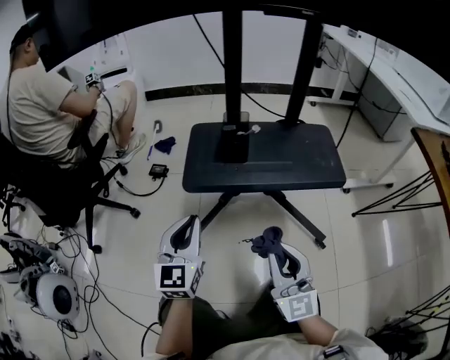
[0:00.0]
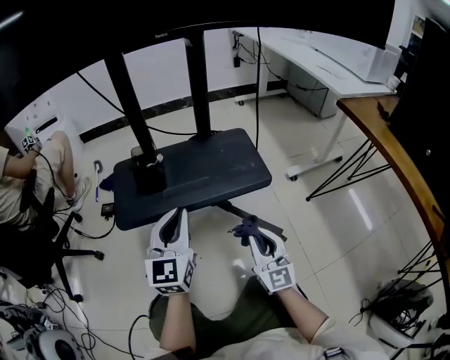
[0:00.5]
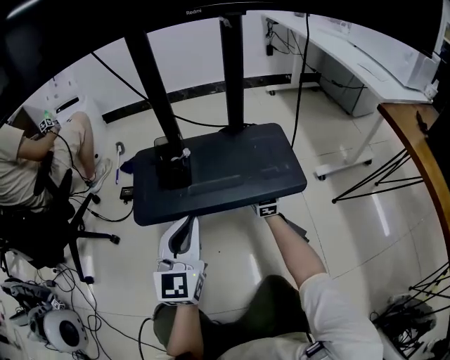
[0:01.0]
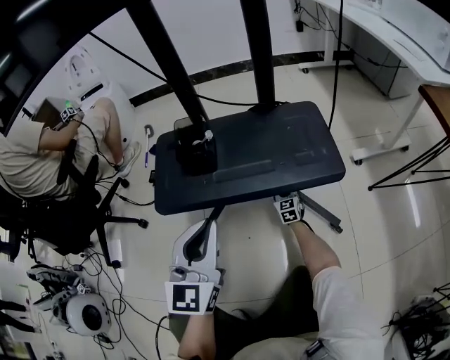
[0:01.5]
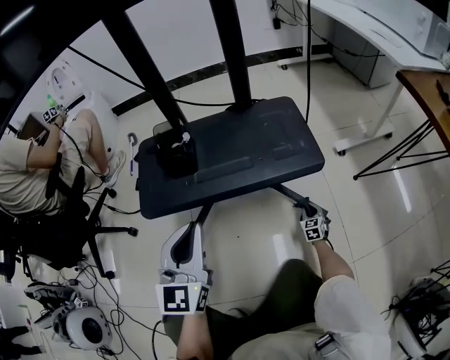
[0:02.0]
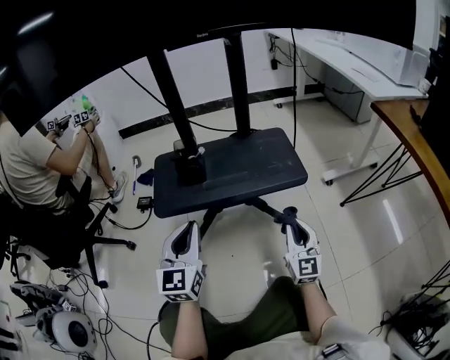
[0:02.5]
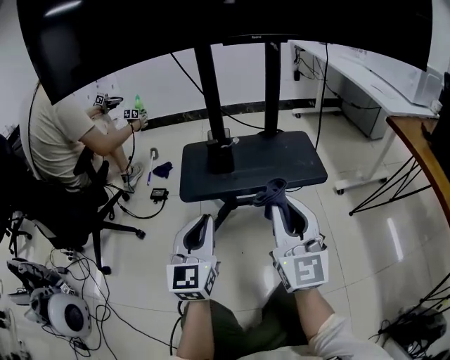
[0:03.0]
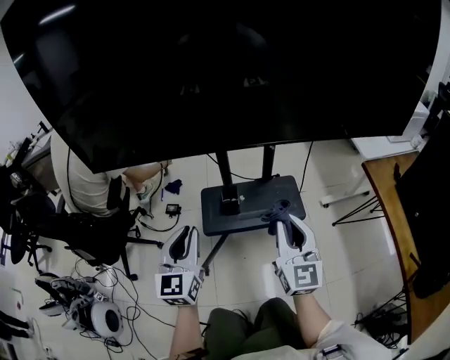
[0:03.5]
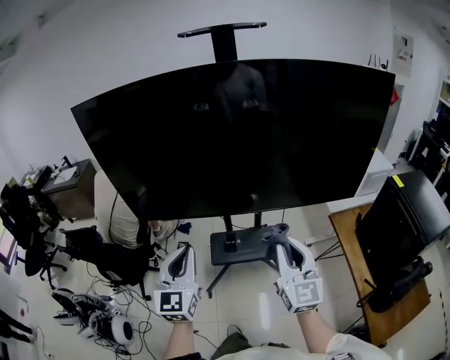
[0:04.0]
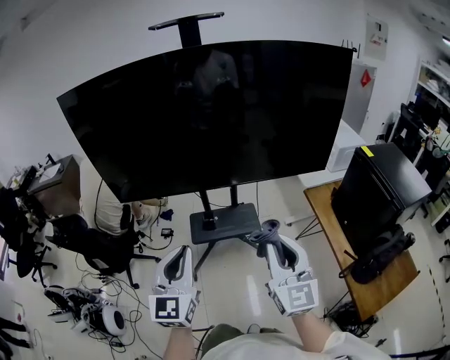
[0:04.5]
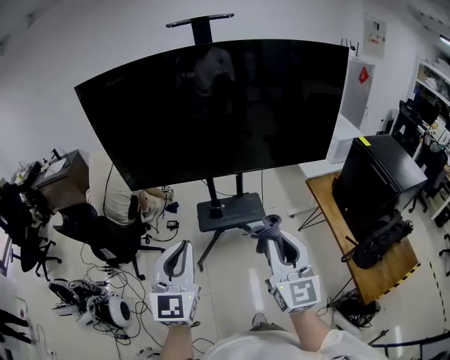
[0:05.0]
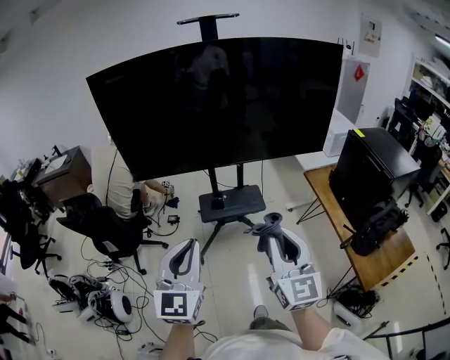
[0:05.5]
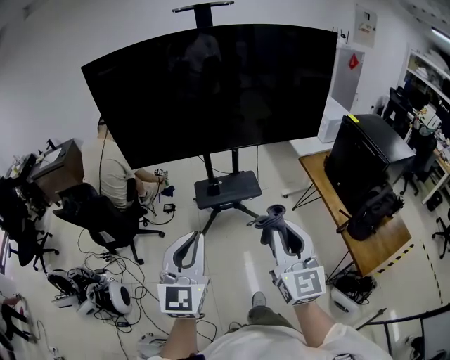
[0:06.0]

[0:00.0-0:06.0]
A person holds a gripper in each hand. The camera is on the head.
0:00.0 to 0:02.0: The right gripper travels downward, forward and to the right by some 60 cm, and rotates roughly 40 degrees. The left gripper travels to the right by about 10 cm.
0:02.0 to 0:04.0: The left gripper shifts approximately 90 cm upward and backward; the right gripper travels upward by roughly 1.5 m, and tilts its fingers some 40 degrees upward.
0:04.0 to 0:06.0: Both grippers move backward, some 30 cm.

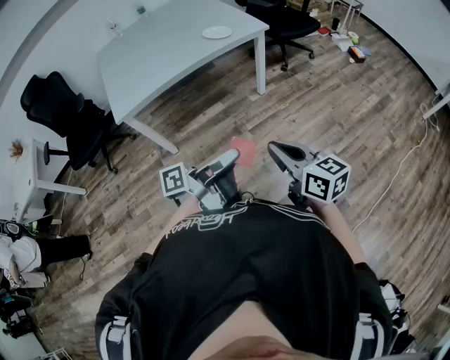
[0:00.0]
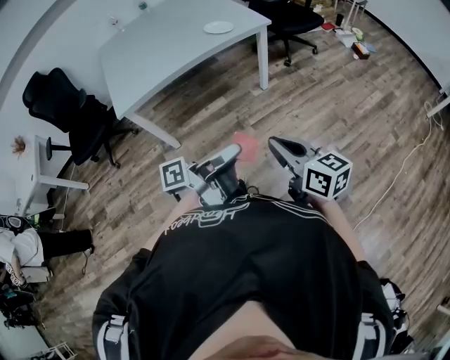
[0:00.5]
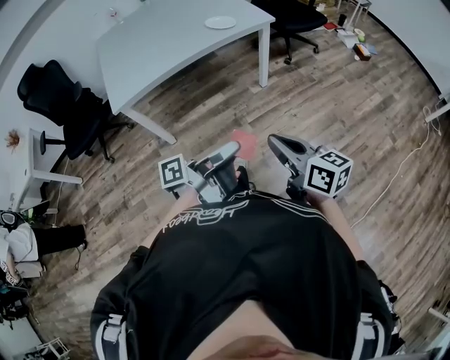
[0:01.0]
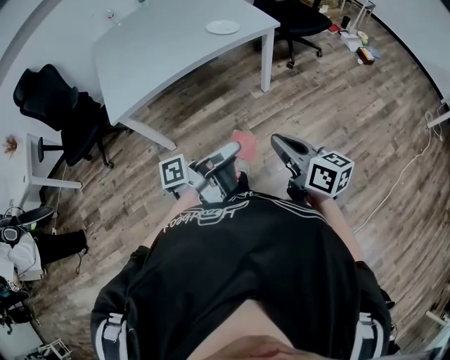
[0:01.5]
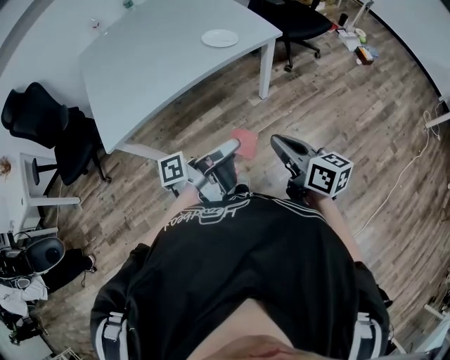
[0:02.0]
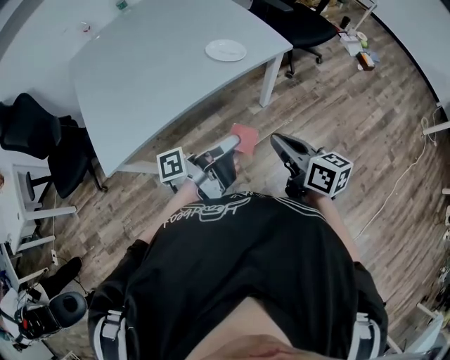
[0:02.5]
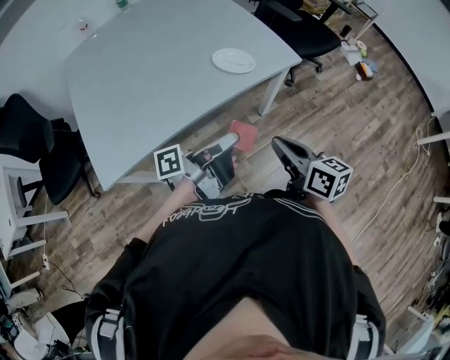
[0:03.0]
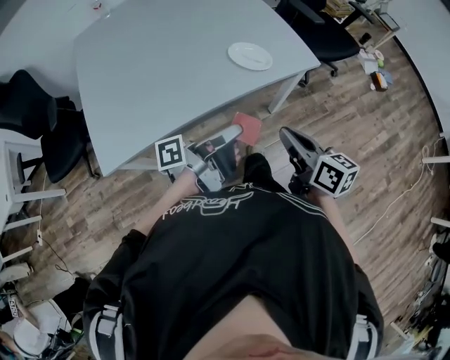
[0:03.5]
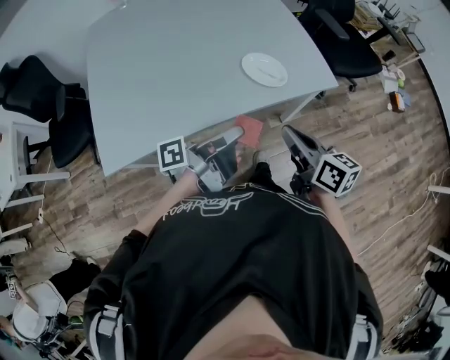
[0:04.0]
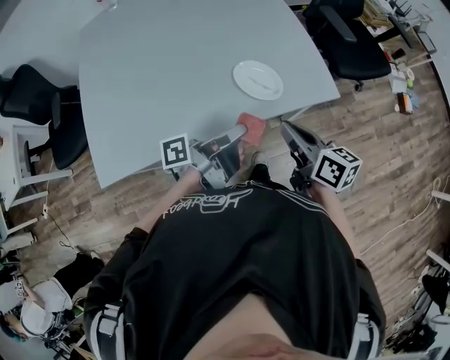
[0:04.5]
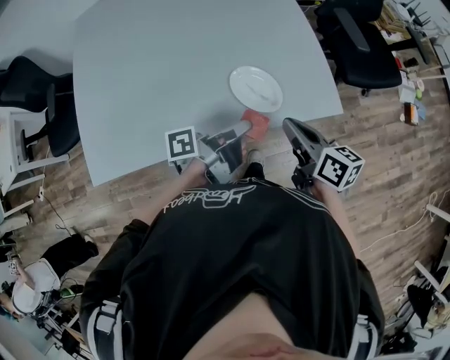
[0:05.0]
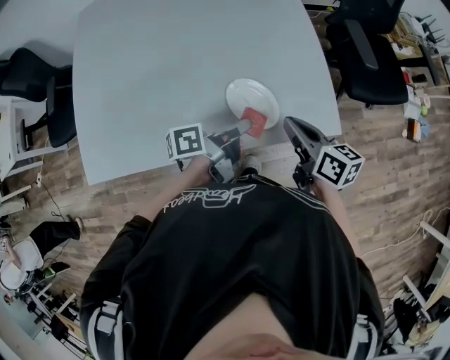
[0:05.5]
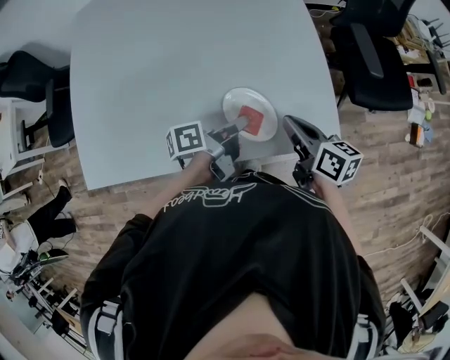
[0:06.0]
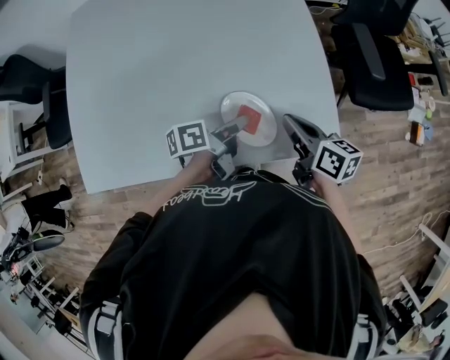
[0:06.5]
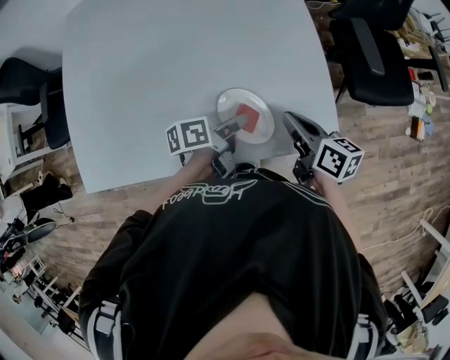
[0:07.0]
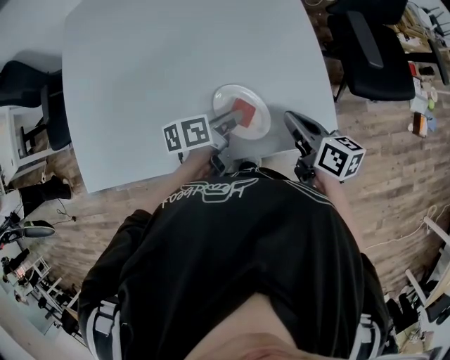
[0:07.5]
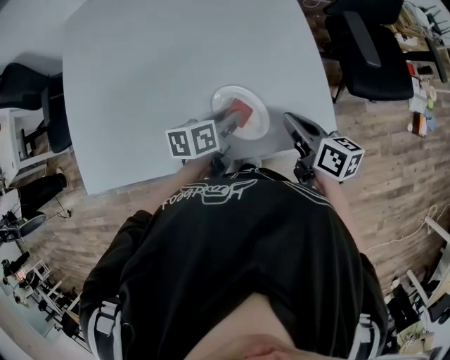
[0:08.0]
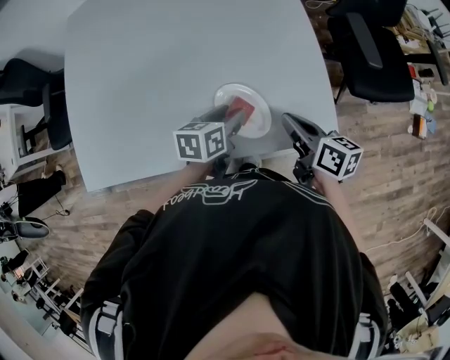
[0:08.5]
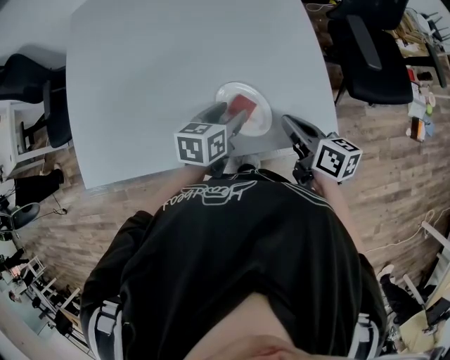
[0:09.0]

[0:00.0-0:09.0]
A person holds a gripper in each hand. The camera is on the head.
0:00.0 to 0:02.0: Both grippers move forward, about 25 cm.
0:02.0 to 0:04.5: Both grippers move forward, roughly 40 cm.
0:04.5 to 0:07.0: Both grippers move forward and downward, some 20 cm. The left gripper points its fingers approximately 30 degrees further downward.
0:07.0 to 0:09.0: The left gripper twists approximately 40 degrees clockwise, seen from behind, and opens.

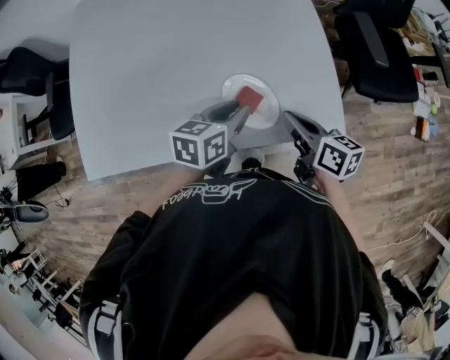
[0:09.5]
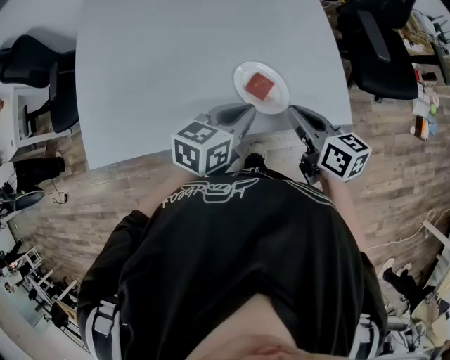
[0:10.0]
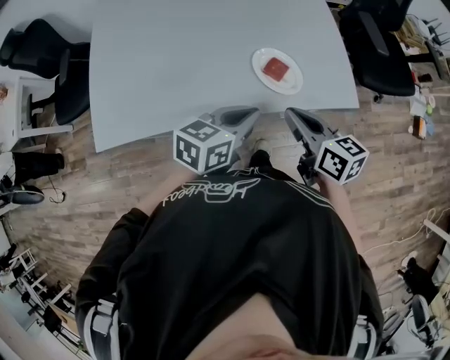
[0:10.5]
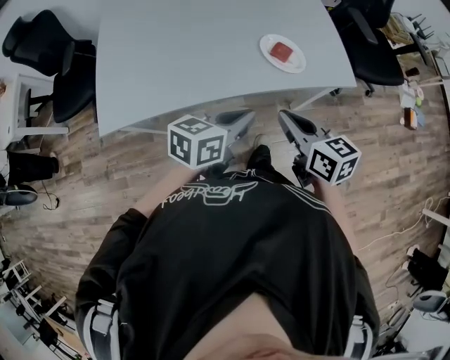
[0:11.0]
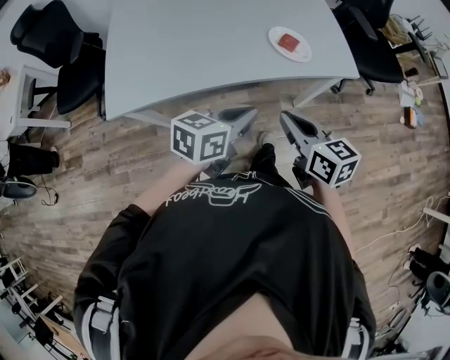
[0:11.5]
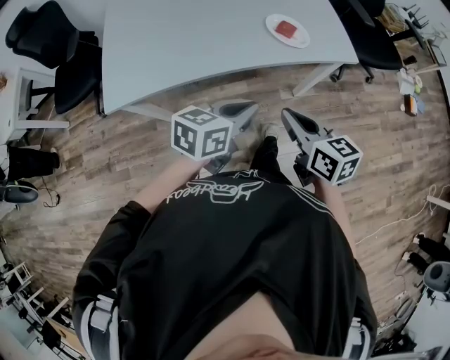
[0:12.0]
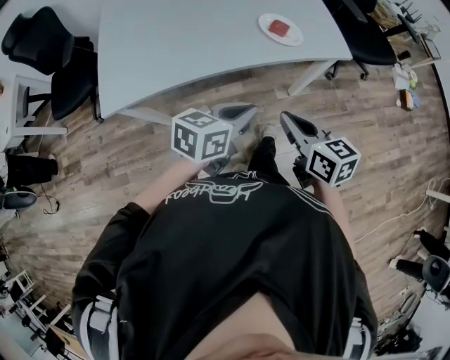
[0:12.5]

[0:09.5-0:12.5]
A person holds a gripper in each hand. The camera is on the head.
0:09.5 to 0:11.0: The left gripper goes about 25 cm backward, and closes. The right gripper moves backward and to the left, some 25 cm, and swivels about 20 degrees.
0:11.0 to 0:12.5: Both grippers travel together backward, about 10 cm.

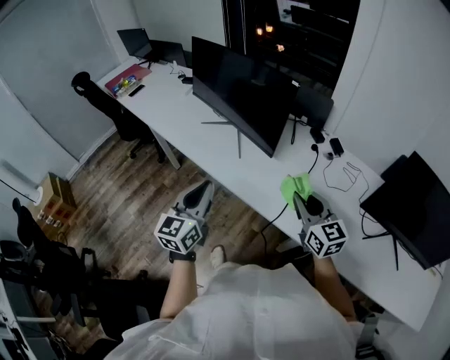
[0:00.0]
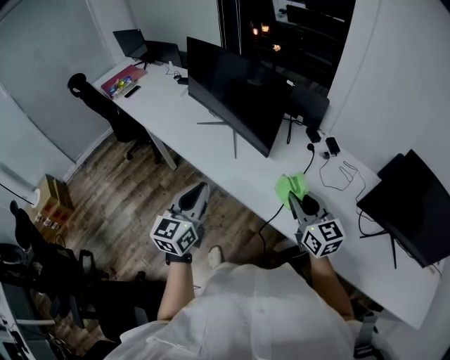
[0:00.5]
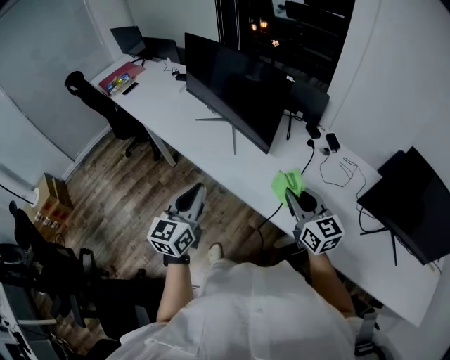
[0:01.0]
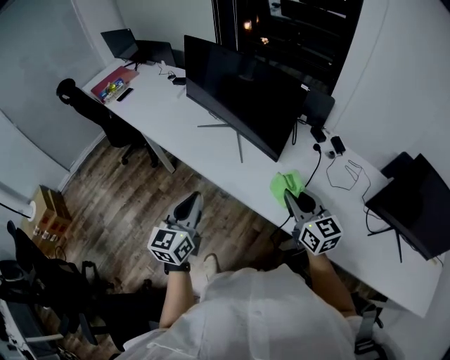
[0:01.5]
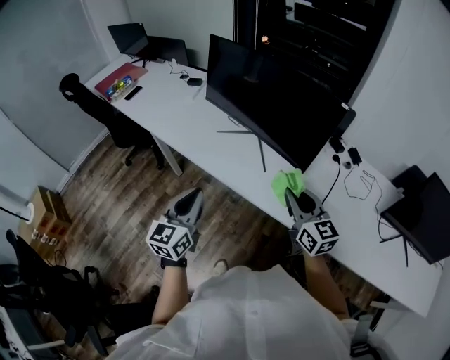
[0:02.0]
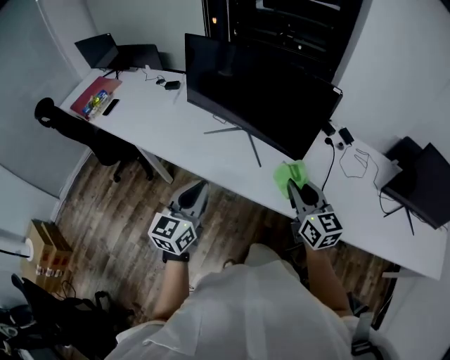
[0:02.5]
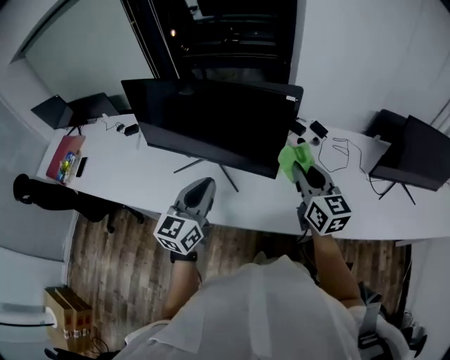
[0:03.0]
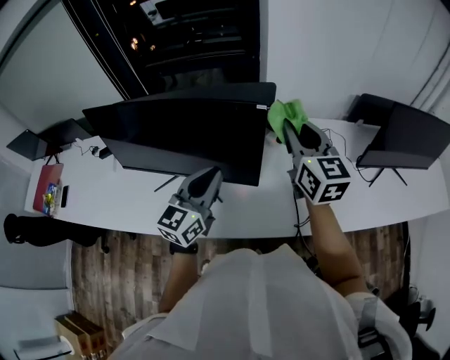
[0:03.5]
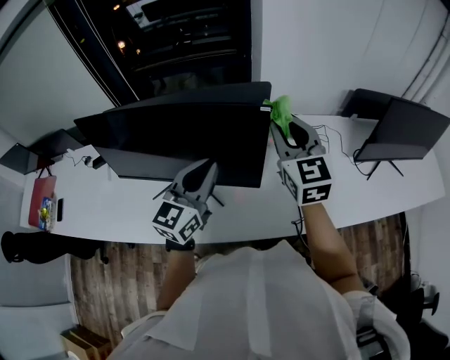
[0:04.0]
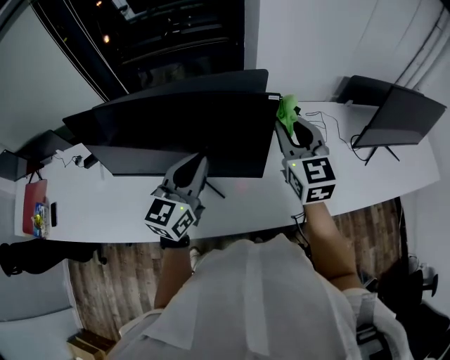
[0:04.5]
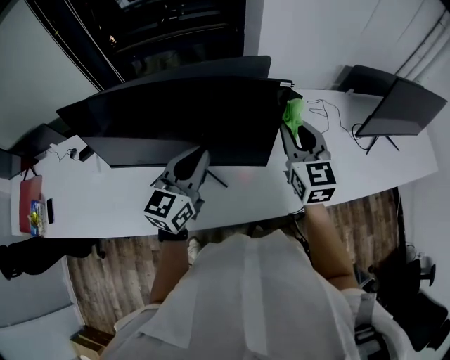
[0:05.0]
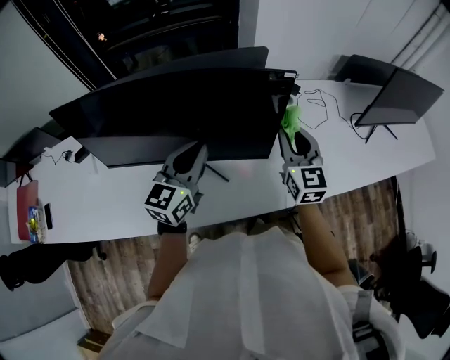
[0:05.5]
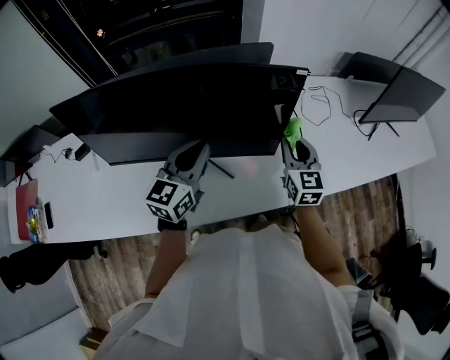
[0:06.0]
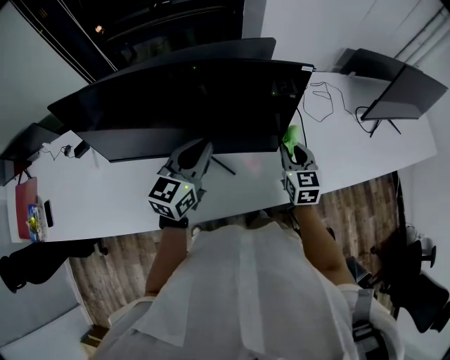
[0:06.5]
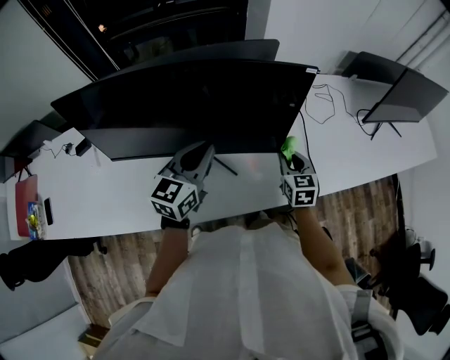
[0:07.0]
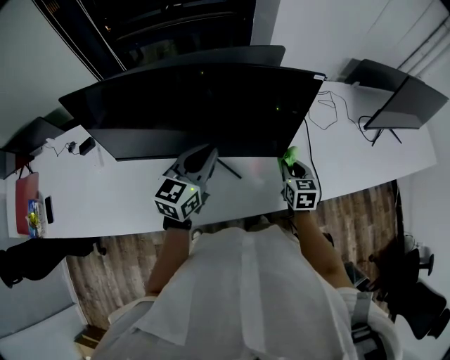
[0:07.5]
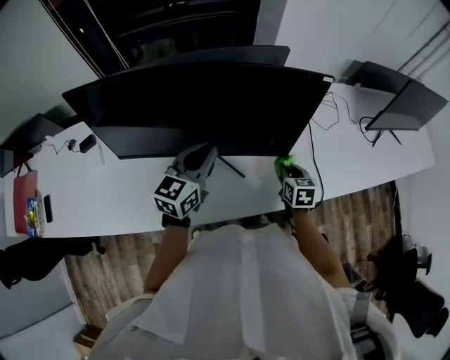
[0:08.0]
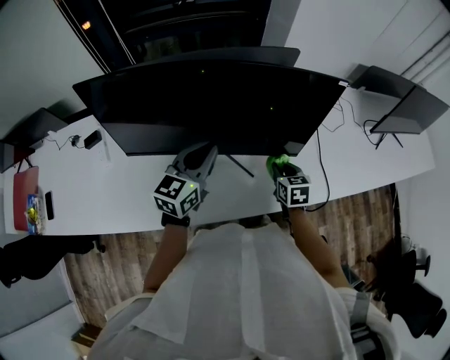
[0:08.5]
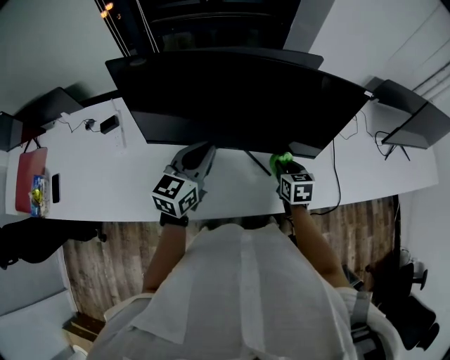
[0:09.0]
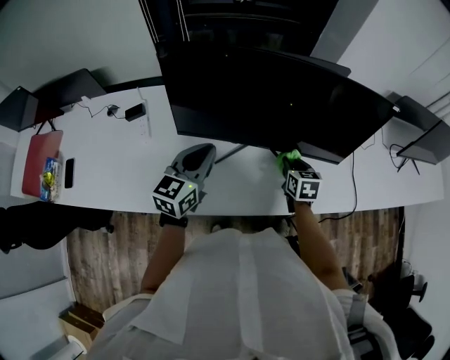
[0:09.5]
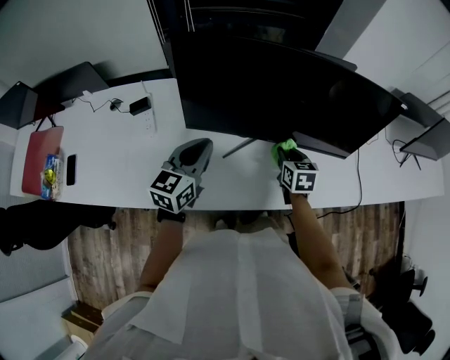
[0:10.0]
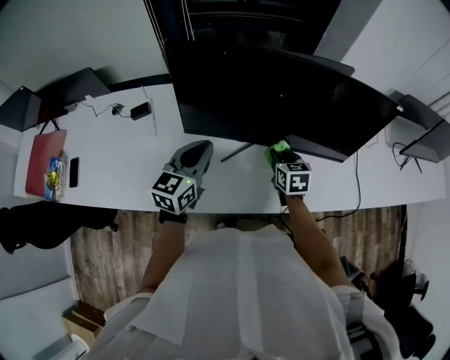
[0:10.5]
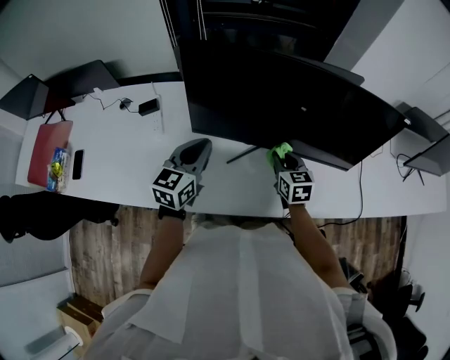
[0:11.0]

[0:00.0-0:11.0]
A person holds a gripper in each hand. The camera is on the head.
0:00.0 to 0:02.0: Both grippers travel together to the left and forward, roughly 20 cm.
0:02.0 to 0:03.5: The left gripper changes place by about 35 cm, and turns by approximately 40 degrees. The right gripper shifts by approximately 30 cm, and changes its angle by some 40 degrees.
0:03.5 to 0:05.5: The right gripper heads downward, covering about 15 cm, while the left gripper moves to the left, about 10 cm.
0:05.5 to 0:07.5: The left gripper moves approximately 5 cm. Meanwhile the right gripper shifts about 20 cm downward, and rotates some 30 degrees.
0:07.5 to 0:09.0: The grippers both shift to the left by some 15 cm.
0:09.0 to 0:11.0: The grippers both shift to the left by some 15 cm.
